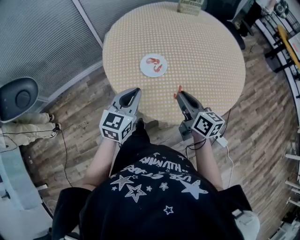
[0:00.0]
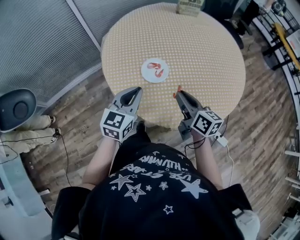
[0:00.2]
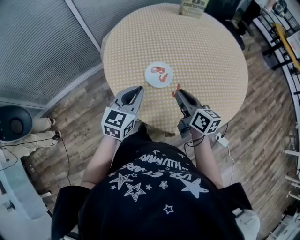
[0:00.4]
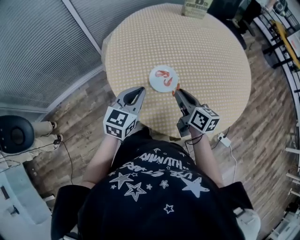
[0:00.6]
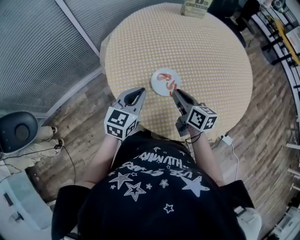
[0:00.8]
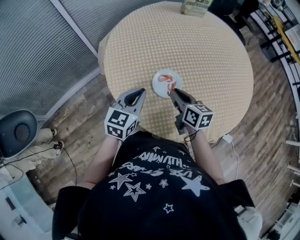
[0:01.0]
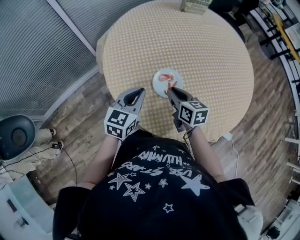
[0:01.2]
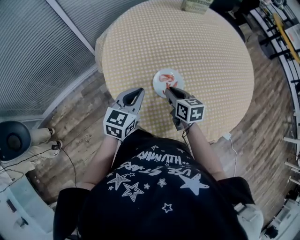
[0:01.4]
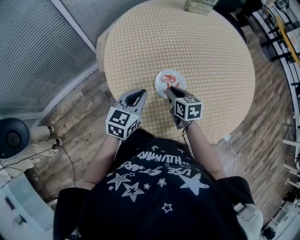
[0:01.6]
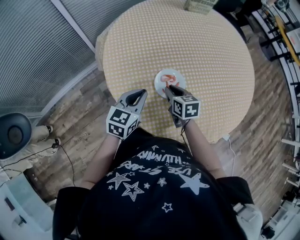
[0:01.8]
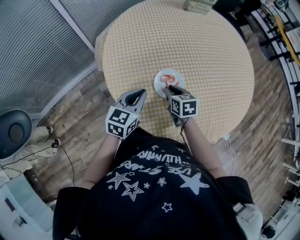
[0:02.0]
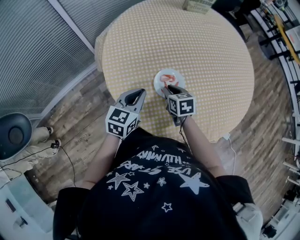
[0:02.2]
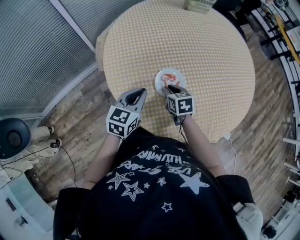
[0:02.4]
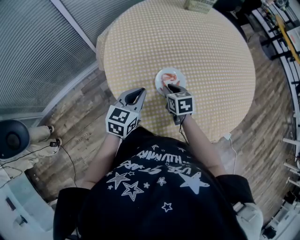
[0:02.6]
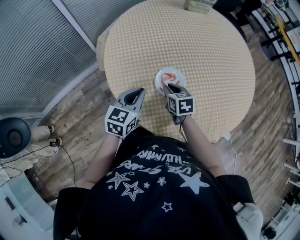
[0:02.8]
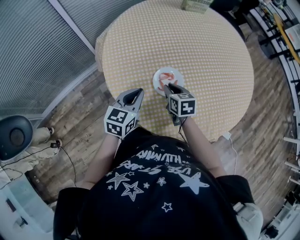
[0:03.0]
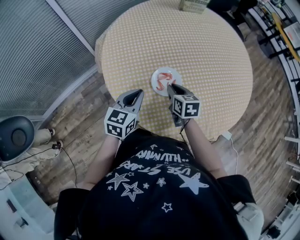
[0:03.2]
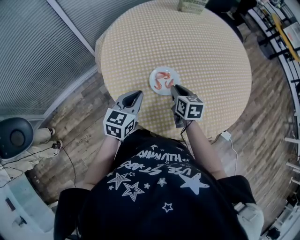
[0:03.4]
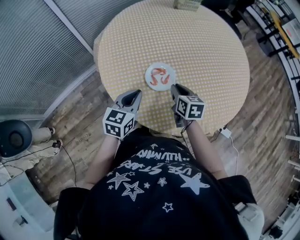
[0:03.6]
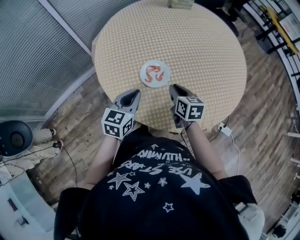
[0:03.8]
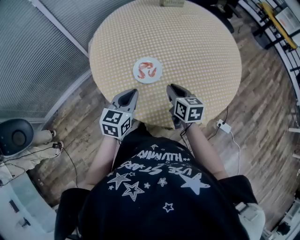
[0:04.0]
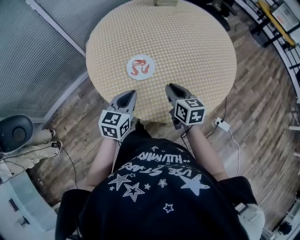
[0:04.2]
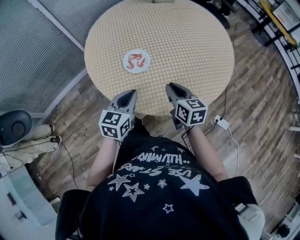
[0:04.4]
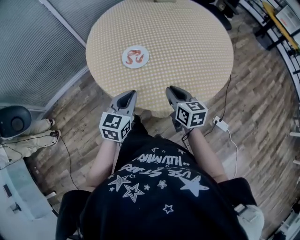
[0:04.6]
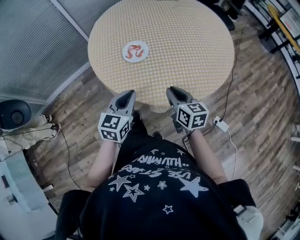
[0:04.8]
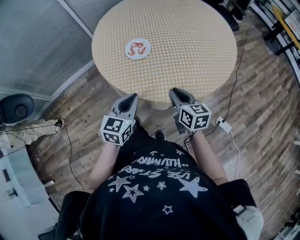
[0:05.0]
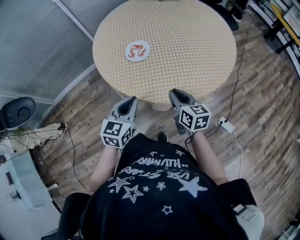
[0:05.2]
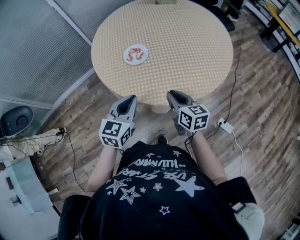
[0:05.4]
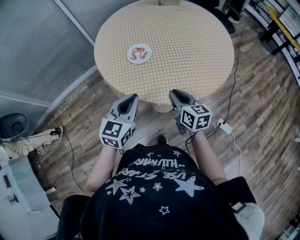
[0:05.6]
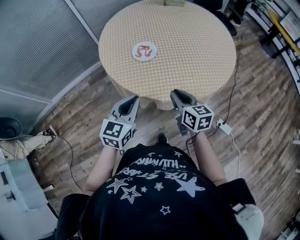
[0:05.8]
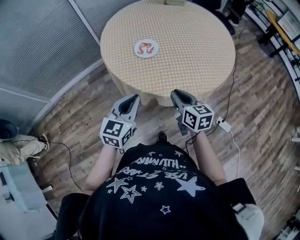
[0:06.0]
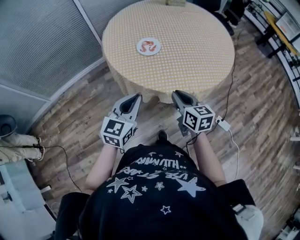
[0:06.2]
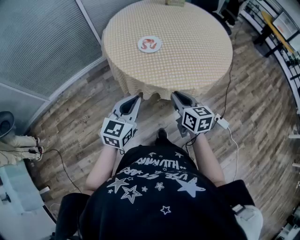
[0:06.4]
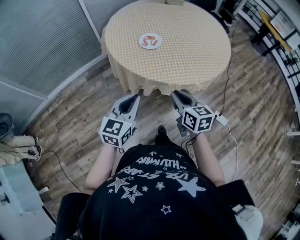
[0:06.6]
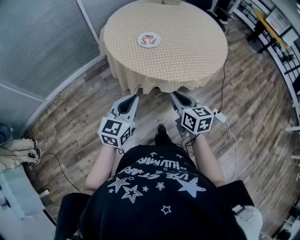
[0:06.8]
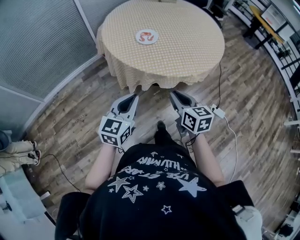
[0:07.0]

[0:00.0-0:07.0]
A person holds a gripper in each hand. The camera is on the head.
0:00.0 to 0:01.4: Both grippers move forward, to the left and downward, approximately 20 cm. The right gripper changes its angle by some 30 degrees.
0:01.4 to 0:02.8: The grippers move only a little.
0:02.8 to 0:04.2: The left gripper goes approximately 15 cm to the right and backward. The right gripper travels to the right, backward and upward by about 20 cm, and swivels roughly 20 degrees.
0:04.2 to 0:05.6: The grippers both shift backward by roughly 15 cm.
0:05.6 to 0:07.0: The grippers both shift backward and to the left by about 20 cm.

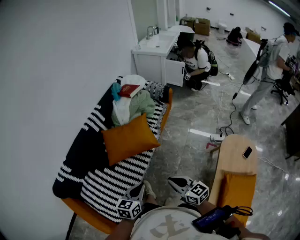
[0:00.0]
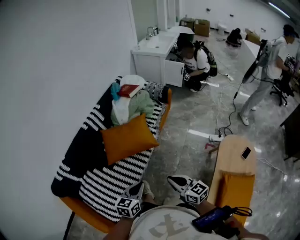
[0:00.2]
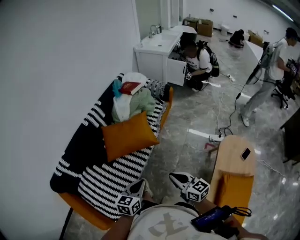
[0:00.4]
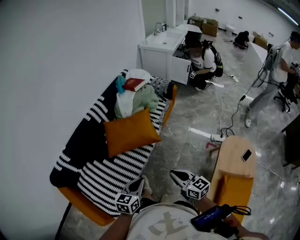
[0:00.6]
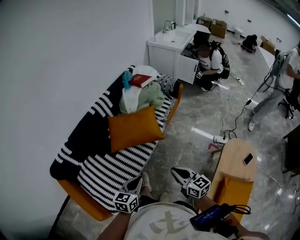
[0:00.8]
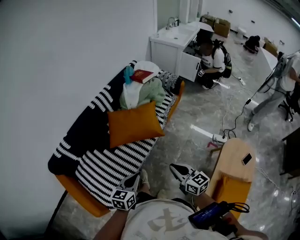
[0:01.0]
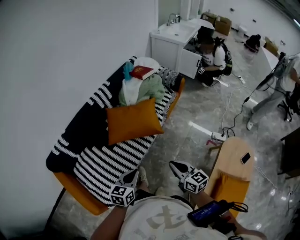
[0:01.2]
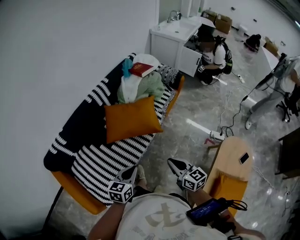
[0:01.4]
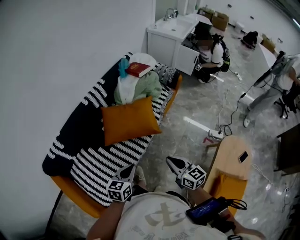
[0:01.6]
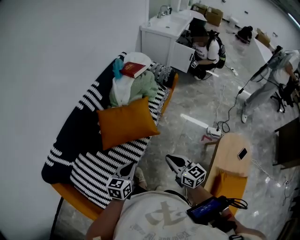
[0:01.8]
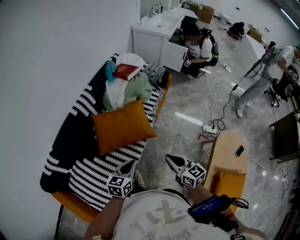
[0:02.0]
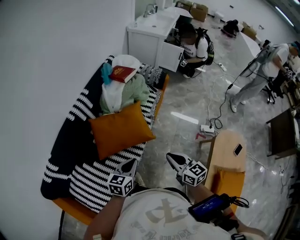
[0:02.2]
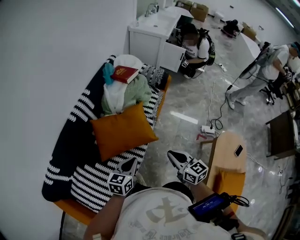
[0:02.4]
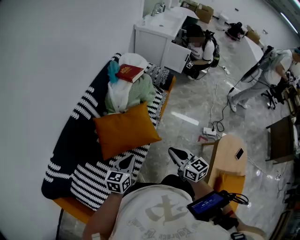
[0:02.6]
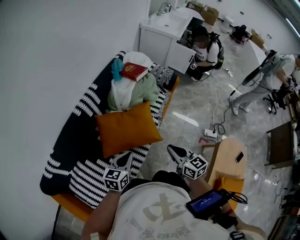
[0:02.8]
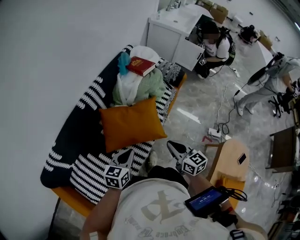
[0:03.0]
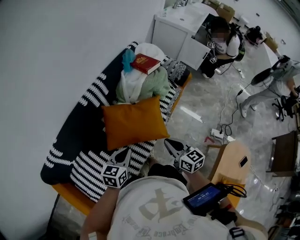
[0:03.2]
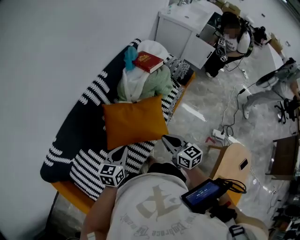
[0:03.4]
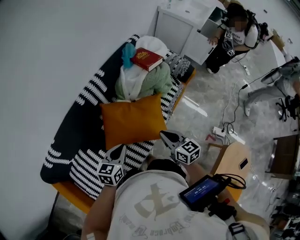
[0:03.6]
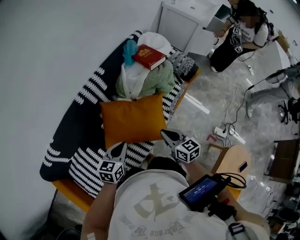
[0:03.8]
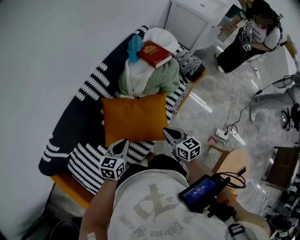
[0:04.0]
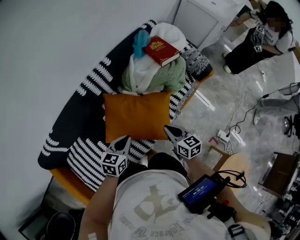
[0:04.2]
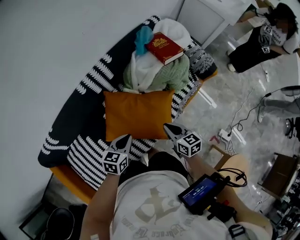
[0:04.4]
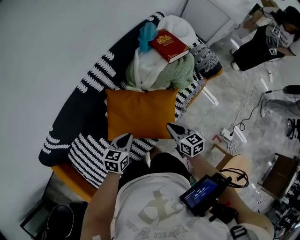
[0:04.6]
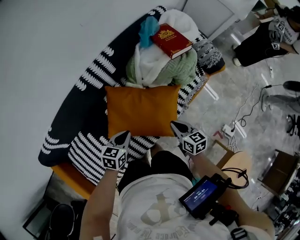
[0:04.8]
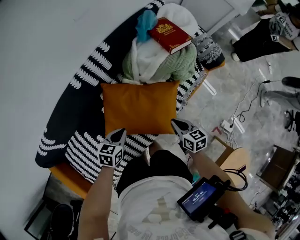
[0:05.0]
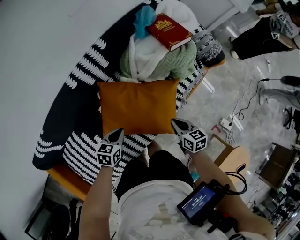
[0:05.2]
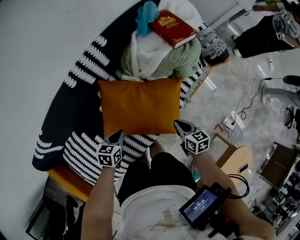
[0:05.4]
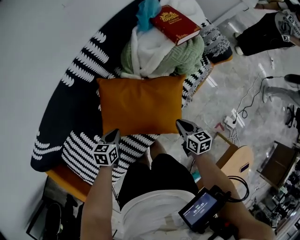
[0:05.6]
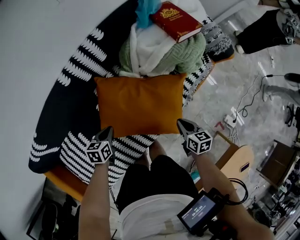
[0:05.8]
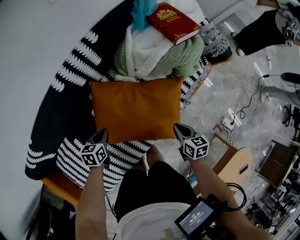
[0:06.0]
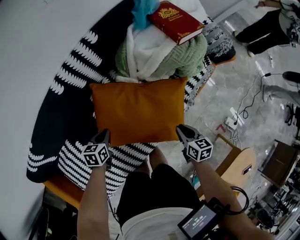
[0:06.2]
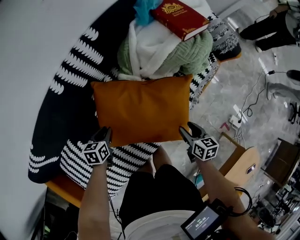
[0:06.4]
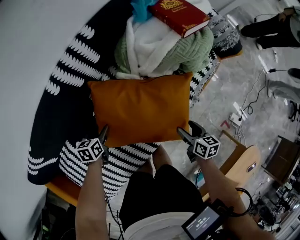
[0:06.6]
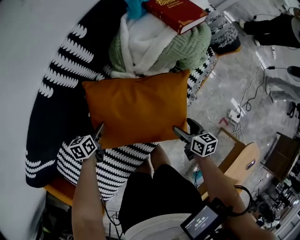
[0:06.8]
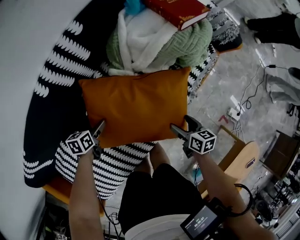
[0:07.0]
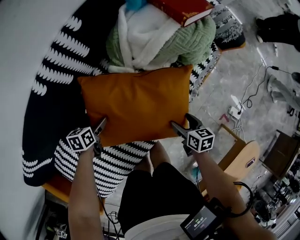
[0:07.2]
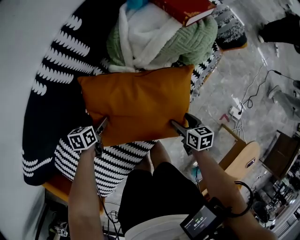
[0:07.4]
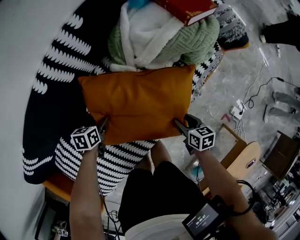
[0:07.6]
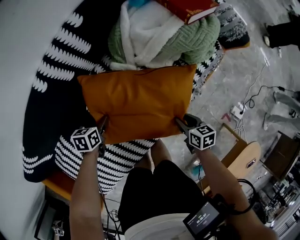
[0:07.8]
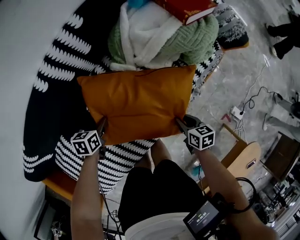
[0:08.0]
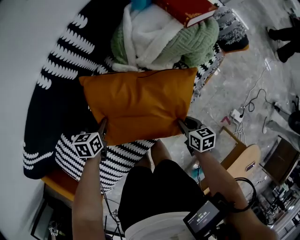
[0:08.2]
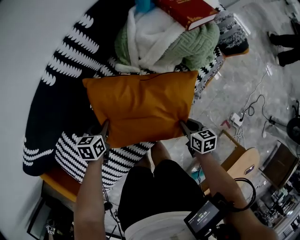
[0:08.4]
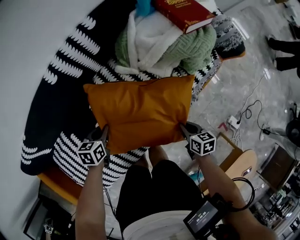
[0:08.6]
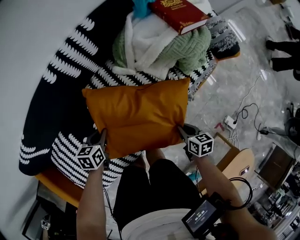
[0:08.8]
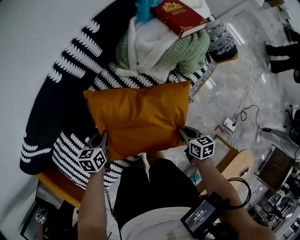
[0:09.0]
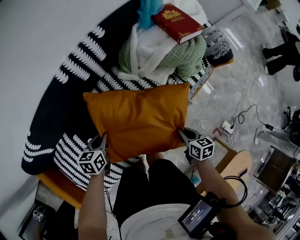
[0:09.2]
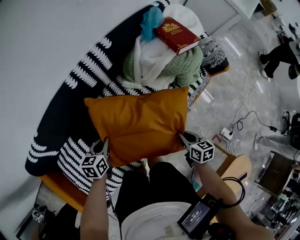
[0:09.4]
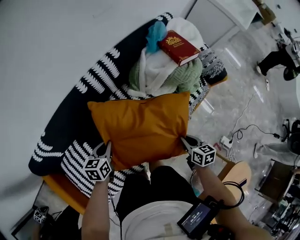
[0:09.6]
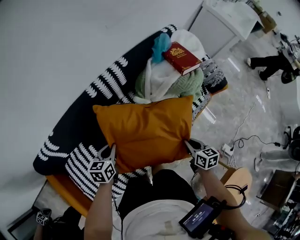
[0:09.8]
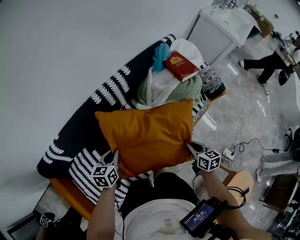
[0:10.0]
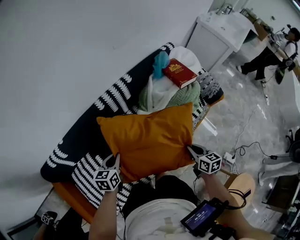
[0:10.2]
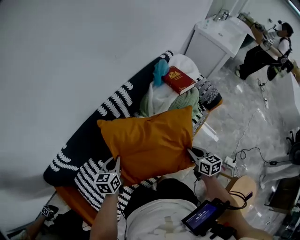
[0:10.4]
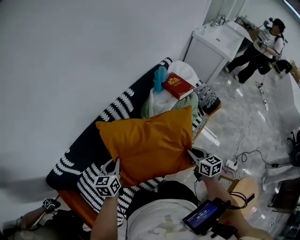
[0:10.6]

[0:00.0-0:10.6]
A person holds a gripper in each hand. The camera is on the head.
0:00.0 to 0:01.6: The right gripper heads forward, covering roughly 10 cm. Meanwhile the left gripper goes roughly 10 cm forward and to the left.
0:01.6 to 0:03.0: The left gripper travels forward and to the left by some 20 cm. Meanwhile the right gripper is displaced forward by some 20 cm.
0:03.0 to 0:04.6: The two grippers go roughly 25 cm forward and downward. The right gripper changes its angle by some 20 degrees, while the left gripper changes its angle by some 20 degrees.
0:04.6 to 0:06.0: The left gripper moves downward and to the left, about 25 cm; the right gripper travels downward by roughly 15 cm.
0:06.0 to 0:07.6: The two grippers go some 10 cm downward. The right gripper opens up. The left gripper opens up.
0:07.6 to 0:09.0: The right gripper travels upward by roughly 5 cm, and closes up; the left gripper is displaced upward and backward by roughly 15 cm, and closes up.
0:09.0 to 0:10.6: The grippers both shift upward by some 25 cm. The left gripper turns by some 20 degrees, while the right gripper changes its angle by about 30 degrees.

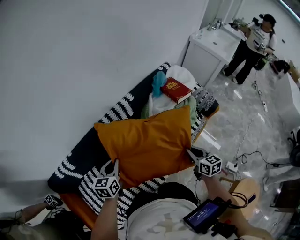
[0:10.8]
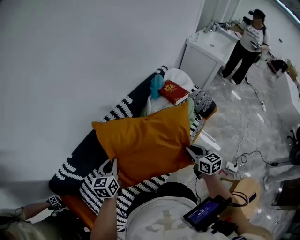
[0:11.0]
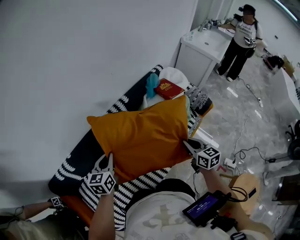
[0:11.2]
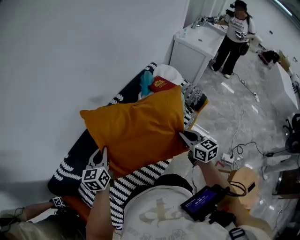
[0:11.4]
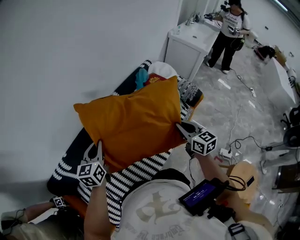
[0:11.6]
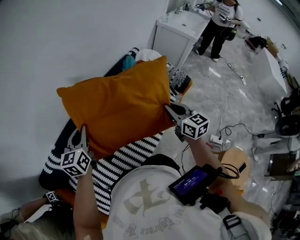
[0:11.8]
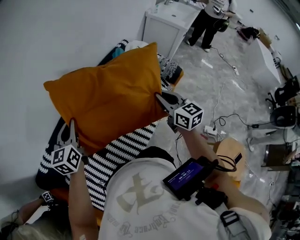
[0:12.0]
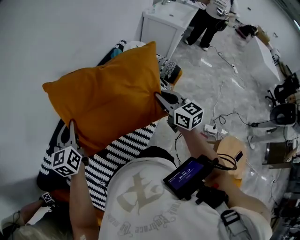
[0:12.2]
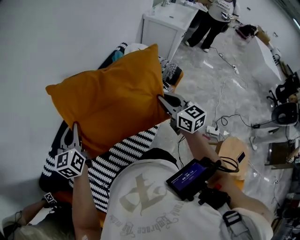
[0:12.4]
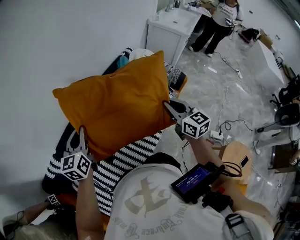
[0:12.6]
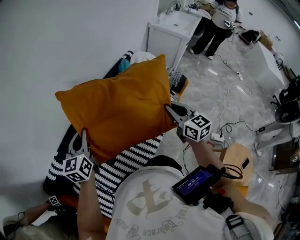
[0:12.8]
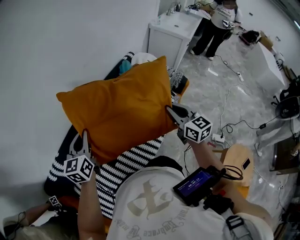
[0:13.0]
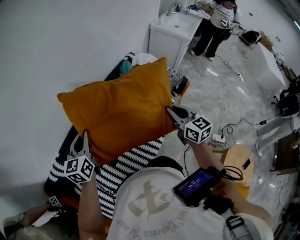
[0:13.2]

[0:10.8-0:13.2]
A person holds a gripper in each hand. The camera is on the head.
0:10.8 to 0:12.0: Both grippers travel together upward, some 15 cm. The right gripper turns by some 20 degrees.
0:12.0 to 0:13.2: There are only small adjustments of the grippers.

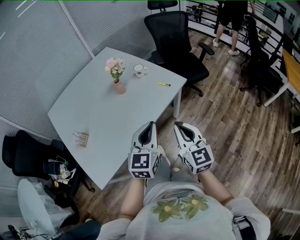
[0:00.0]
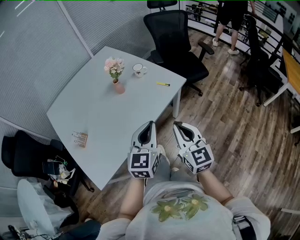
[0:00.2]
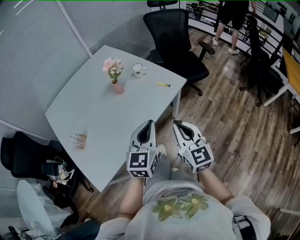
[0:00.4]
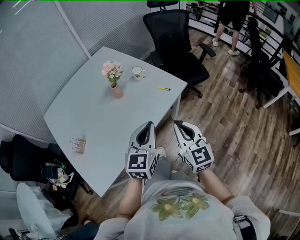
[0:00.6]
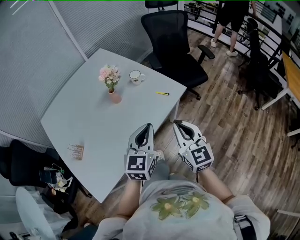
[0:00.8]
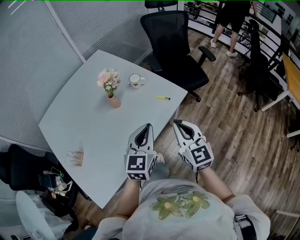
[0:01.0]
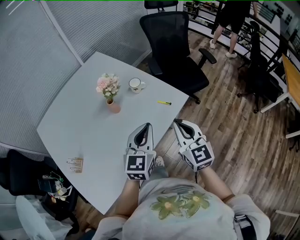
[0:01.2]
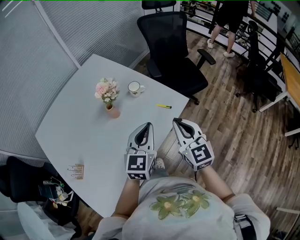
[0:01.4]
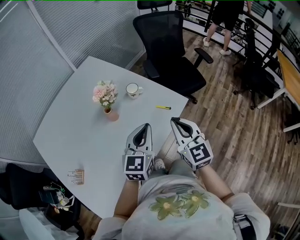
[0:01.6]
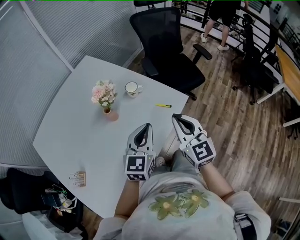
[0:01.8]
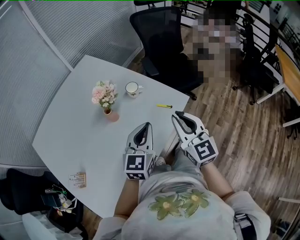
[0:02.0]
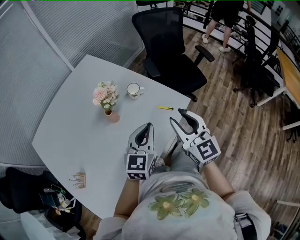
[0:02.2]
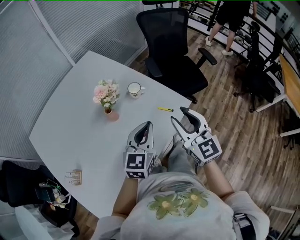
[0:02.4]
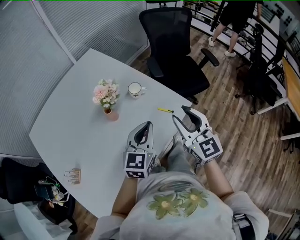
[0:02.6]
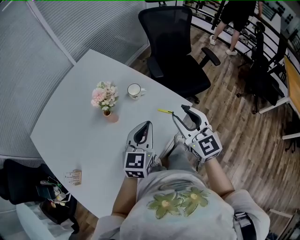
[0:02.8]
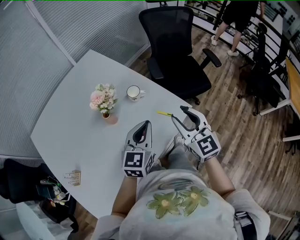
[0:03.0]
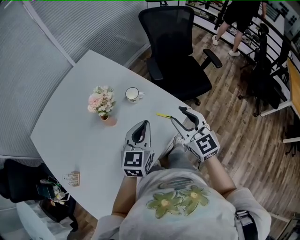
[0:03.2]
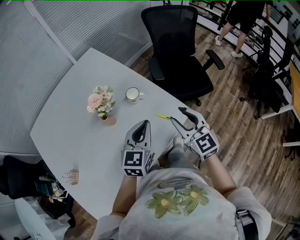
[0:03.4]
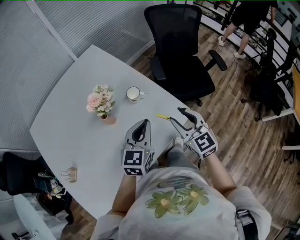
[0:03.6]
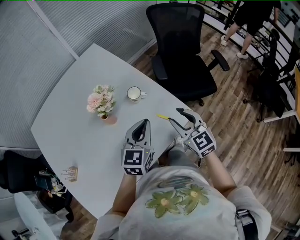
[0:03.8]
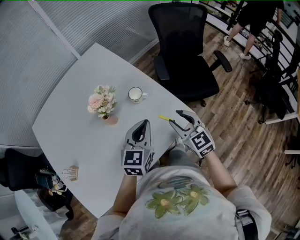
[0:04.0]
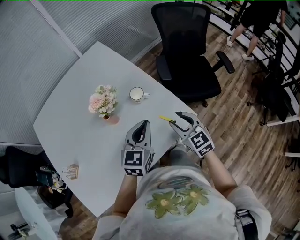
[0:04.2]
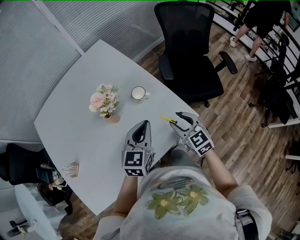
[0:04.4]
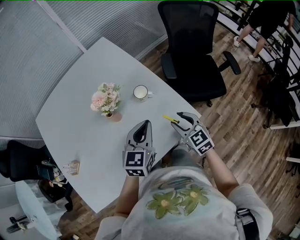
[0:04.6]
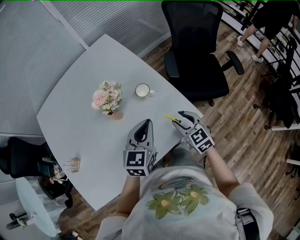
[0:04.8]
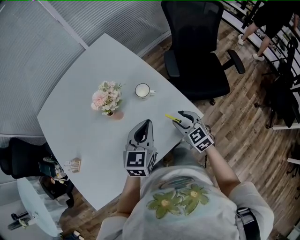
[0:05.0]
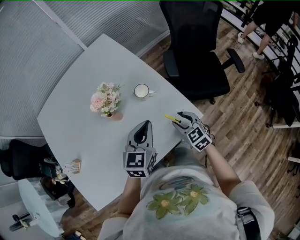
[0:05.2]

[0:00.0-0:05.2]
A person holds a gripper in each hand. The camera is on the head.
0:00.0 to 0:01.8: Both grippers travel together forward, roughly 25 cm.
0:01.8 to 0:03.4: Both grippers travel together forward, approximately 10 cm. The right gripper opens its fingers.
0:03.4 to 0:05.2: The right gripper travels downward by approximately 15 cm, and swivels some 30 degrees, while the left gripper ends up roughly 5 cm from where it was.
